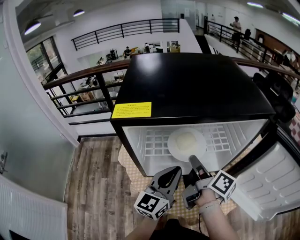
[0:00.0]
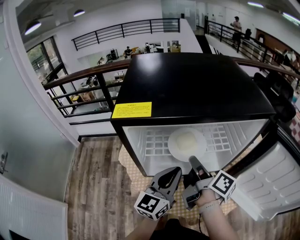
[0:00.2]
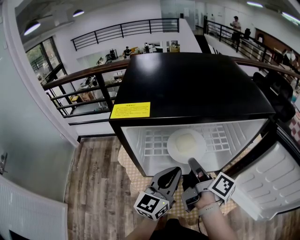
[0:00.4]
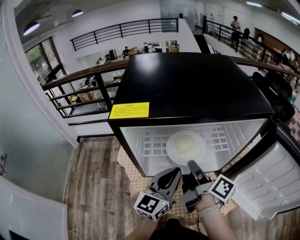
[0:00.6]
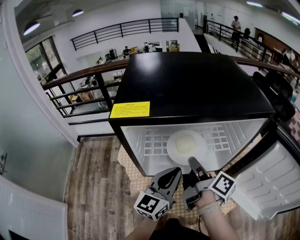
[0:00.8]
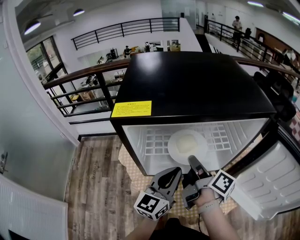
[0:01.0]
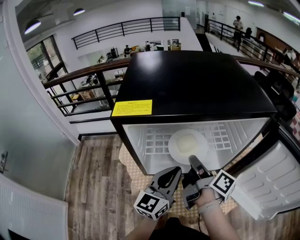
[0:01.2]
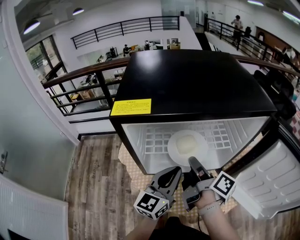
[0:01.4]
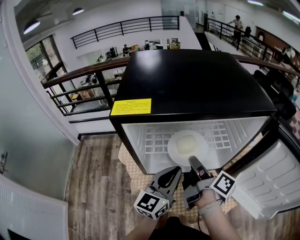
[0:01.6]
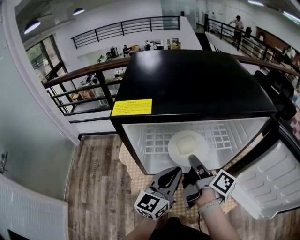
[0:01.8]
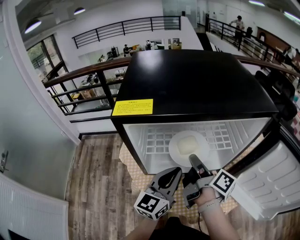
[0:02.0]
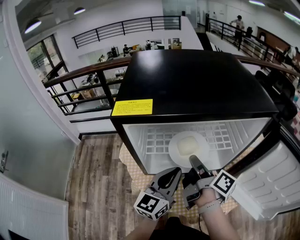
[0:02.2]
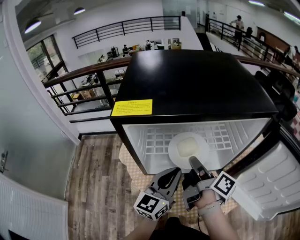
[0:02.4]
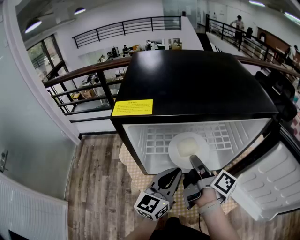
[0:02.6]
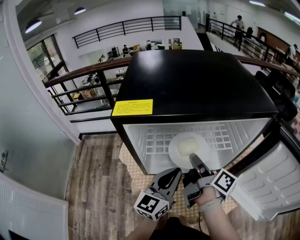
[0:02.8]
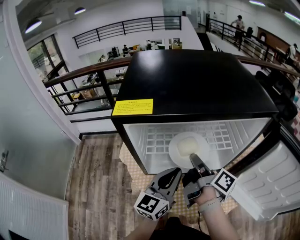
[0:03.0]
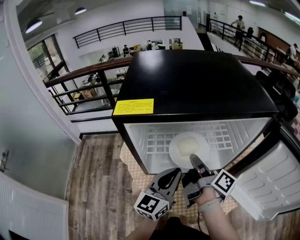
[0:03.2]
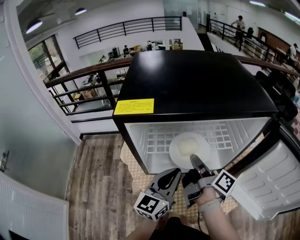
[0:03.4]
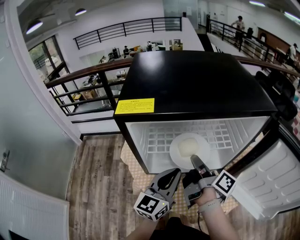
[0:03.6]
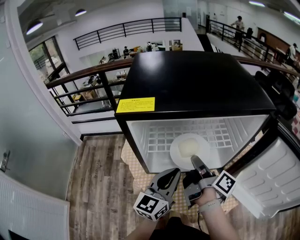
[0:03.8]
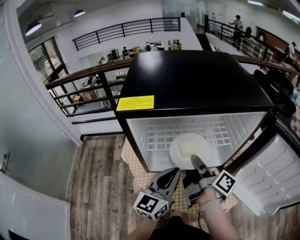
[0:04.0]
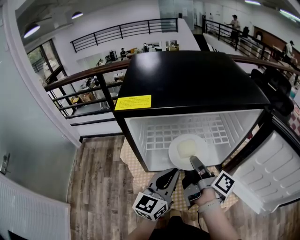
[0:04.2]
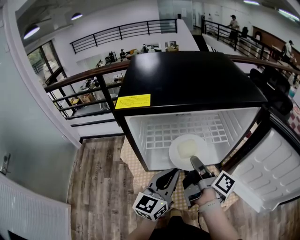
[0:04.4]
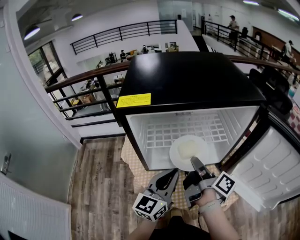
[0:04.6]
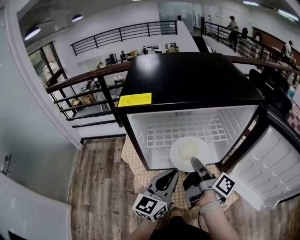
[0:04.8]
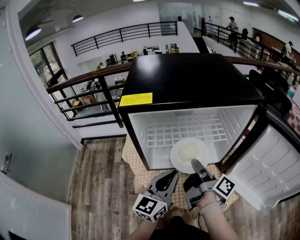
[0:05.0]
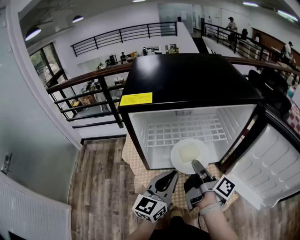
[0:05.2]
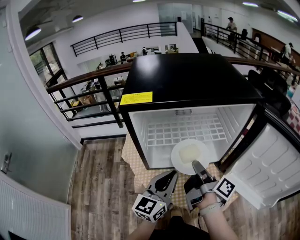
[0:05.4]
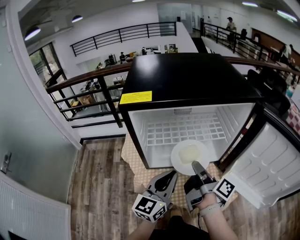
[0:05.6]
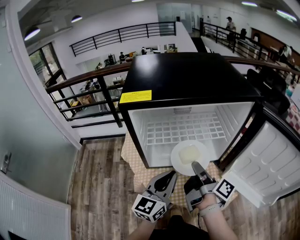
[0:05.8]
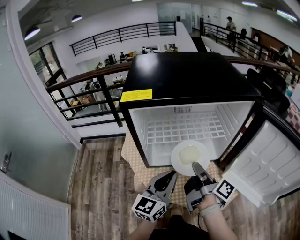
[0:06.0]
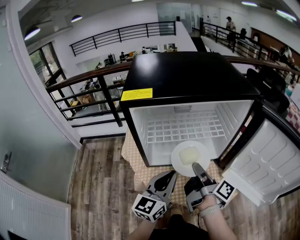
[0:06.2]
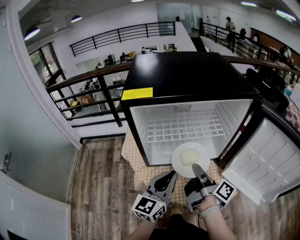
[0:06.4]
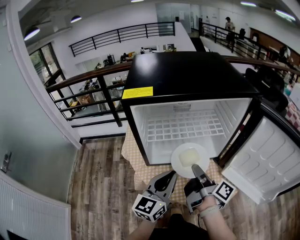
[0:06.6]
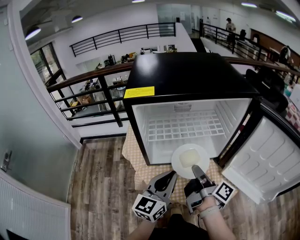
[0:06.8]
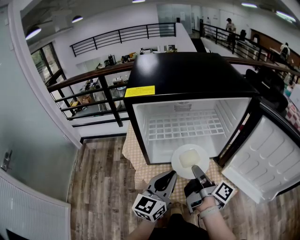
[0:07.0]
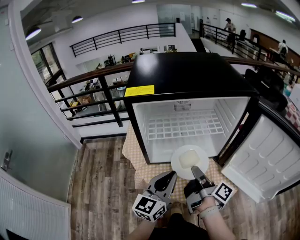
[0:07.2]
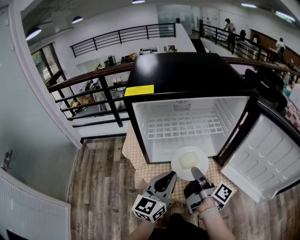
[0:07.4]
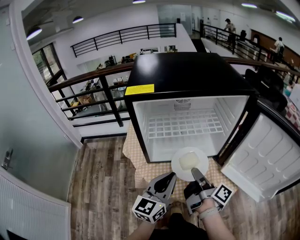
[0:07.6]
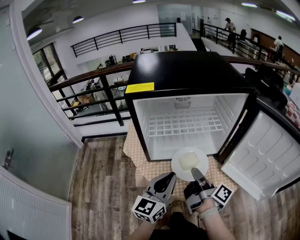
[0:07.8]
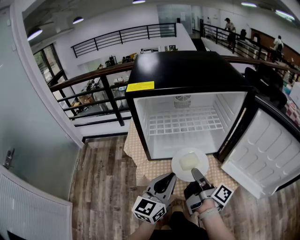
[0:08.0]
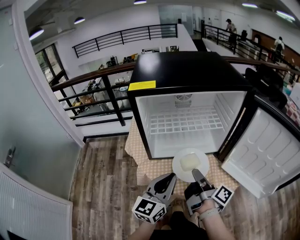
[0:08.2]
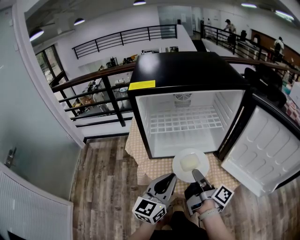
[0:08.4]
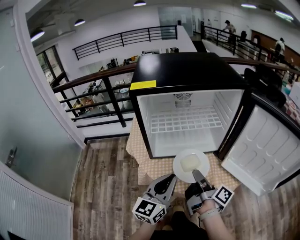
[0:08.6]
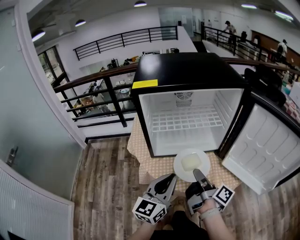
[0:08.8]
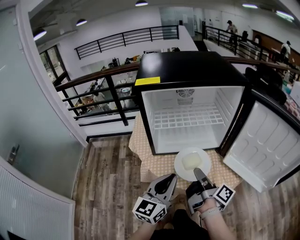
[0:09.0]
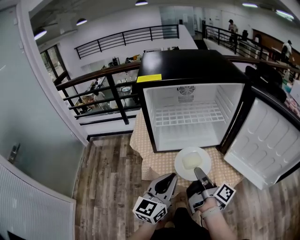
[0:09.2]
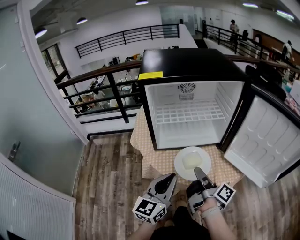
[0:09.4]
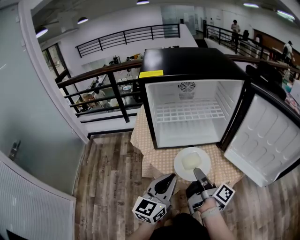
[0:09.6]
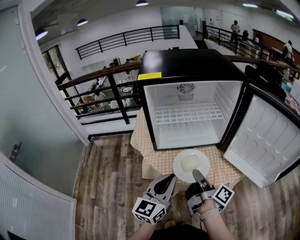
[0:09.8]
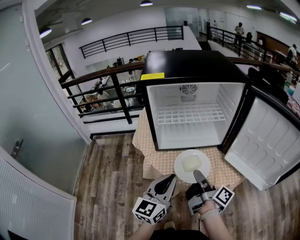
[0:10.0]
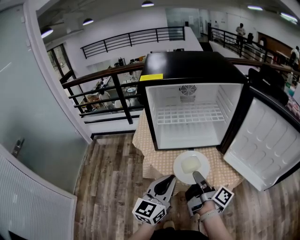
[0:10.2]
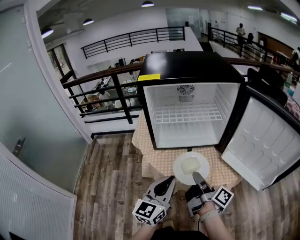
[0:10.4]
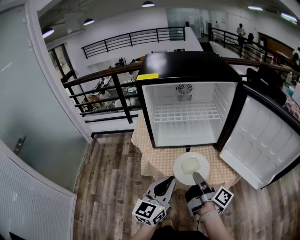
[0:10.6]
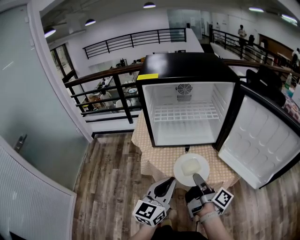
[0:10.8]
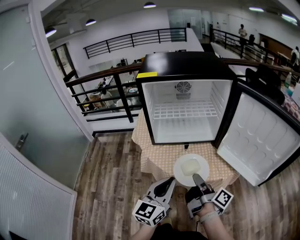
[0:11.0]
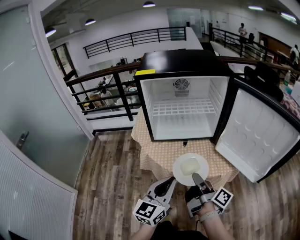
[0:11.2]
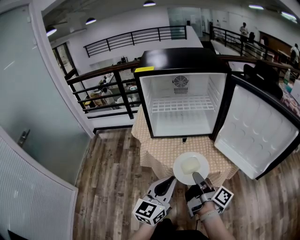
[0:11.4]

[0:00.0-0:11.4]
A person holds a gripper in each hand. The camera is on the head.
0:00.0 to 0:01.4: The grippers move only a little.
0:01.4 to 0:02.8: Both grippers stay put.
0:02.8 to 0:04.2: The grippers make only small movements.
0:04.2 to 0:05.6: The grippers make only small movements.
0:05.6 to 0:07.2: There are only small adjustments of the grippers.
0:07.2 to 0:08.6: The grippers both shift backward by approximately 5 cm.
0:08.6 to 0:10.0: The left gripper travels backward by roughly 5 cm.
0:10.0 to 0:11.4: The grippers both shift backward and to the right by roughly 10 cm.

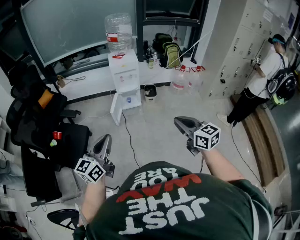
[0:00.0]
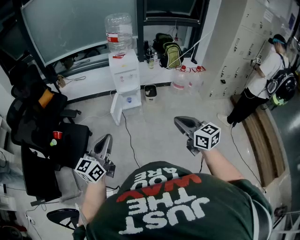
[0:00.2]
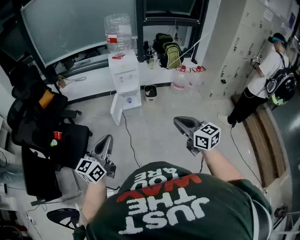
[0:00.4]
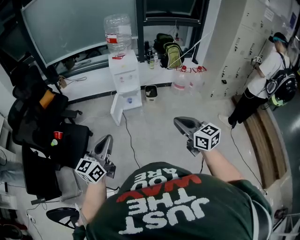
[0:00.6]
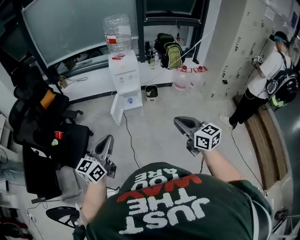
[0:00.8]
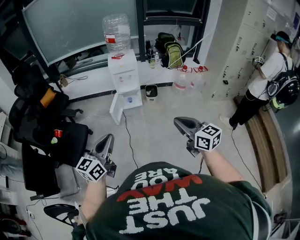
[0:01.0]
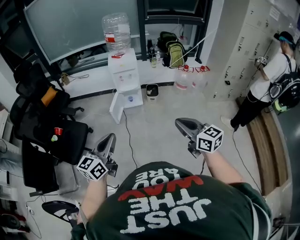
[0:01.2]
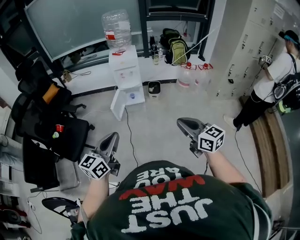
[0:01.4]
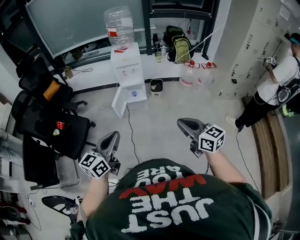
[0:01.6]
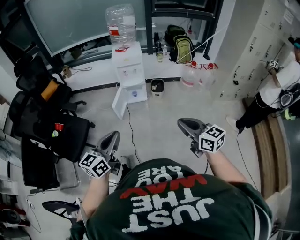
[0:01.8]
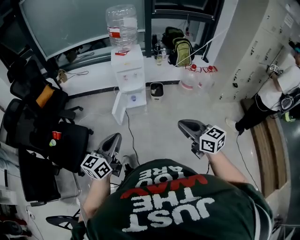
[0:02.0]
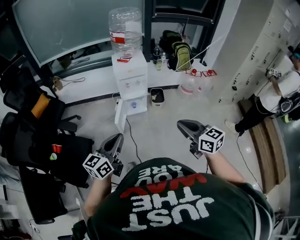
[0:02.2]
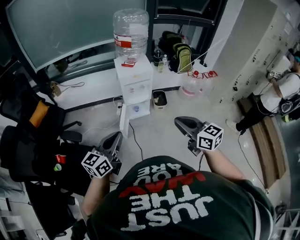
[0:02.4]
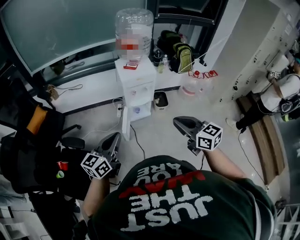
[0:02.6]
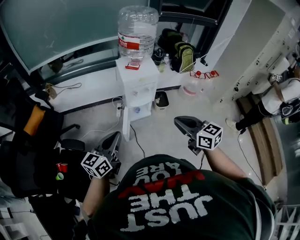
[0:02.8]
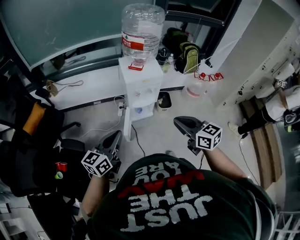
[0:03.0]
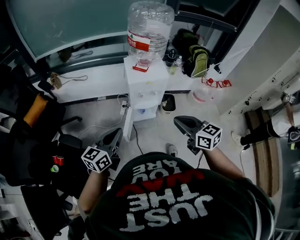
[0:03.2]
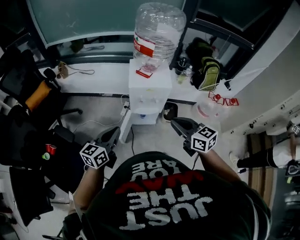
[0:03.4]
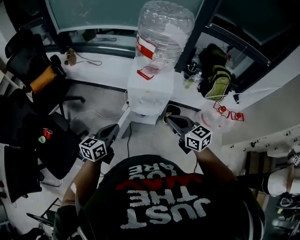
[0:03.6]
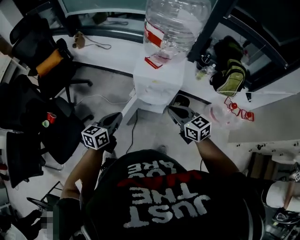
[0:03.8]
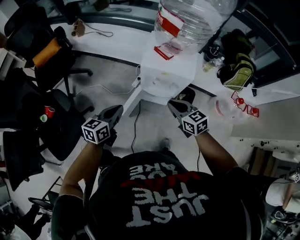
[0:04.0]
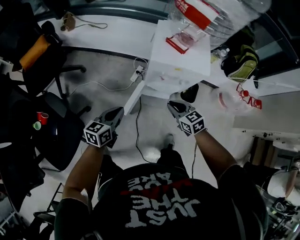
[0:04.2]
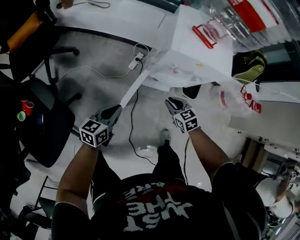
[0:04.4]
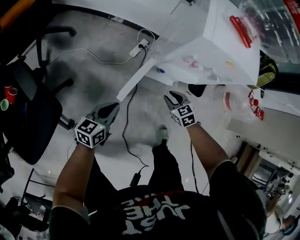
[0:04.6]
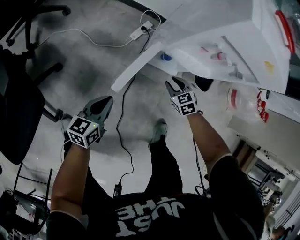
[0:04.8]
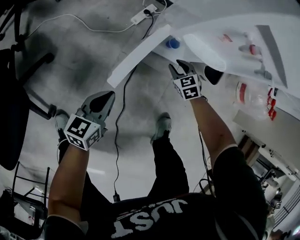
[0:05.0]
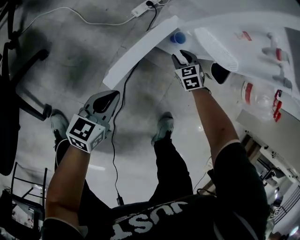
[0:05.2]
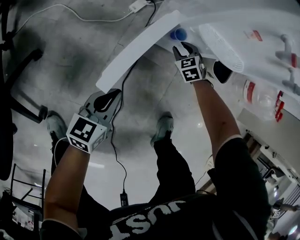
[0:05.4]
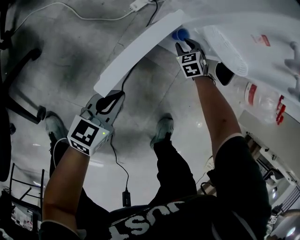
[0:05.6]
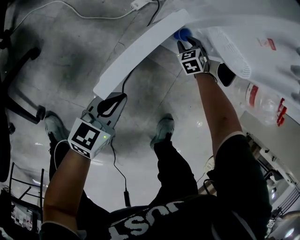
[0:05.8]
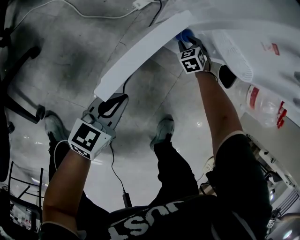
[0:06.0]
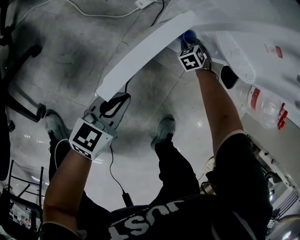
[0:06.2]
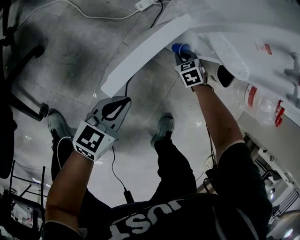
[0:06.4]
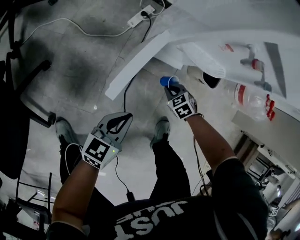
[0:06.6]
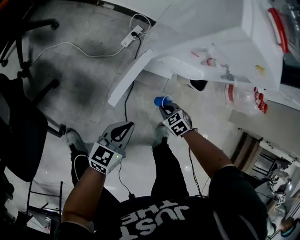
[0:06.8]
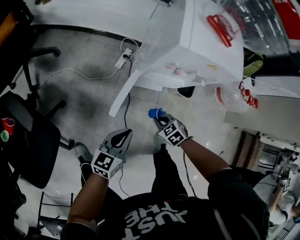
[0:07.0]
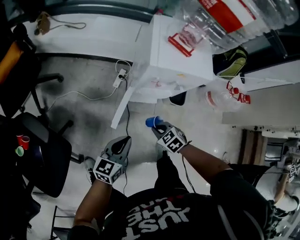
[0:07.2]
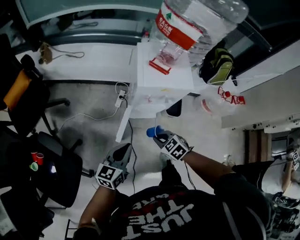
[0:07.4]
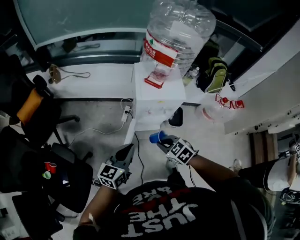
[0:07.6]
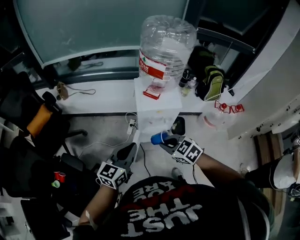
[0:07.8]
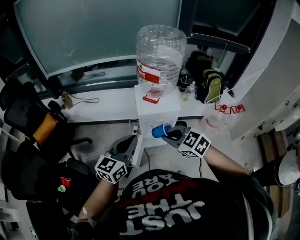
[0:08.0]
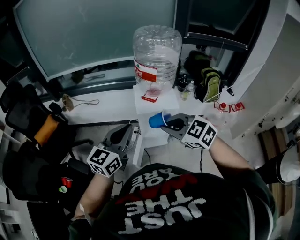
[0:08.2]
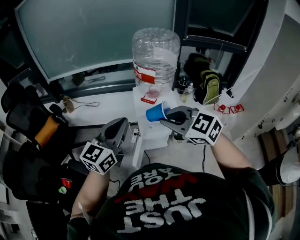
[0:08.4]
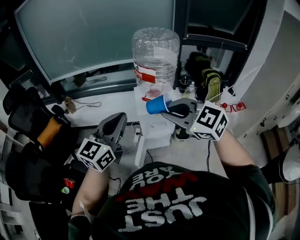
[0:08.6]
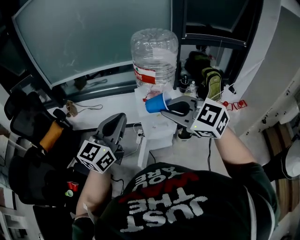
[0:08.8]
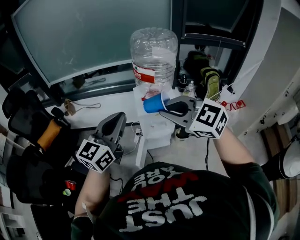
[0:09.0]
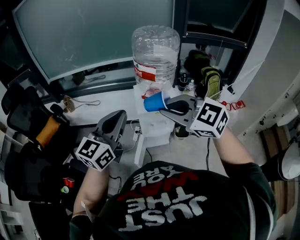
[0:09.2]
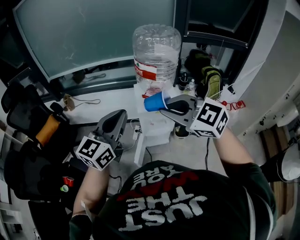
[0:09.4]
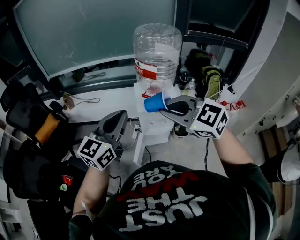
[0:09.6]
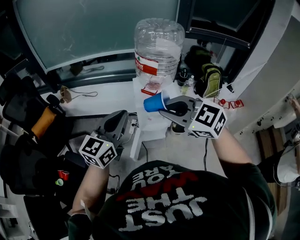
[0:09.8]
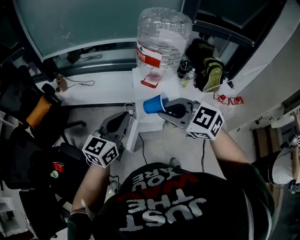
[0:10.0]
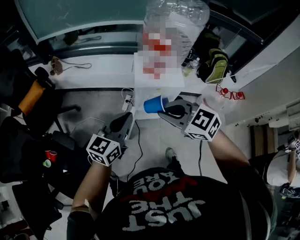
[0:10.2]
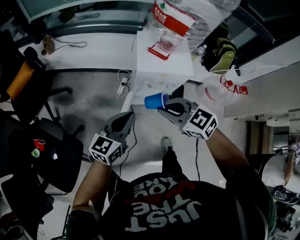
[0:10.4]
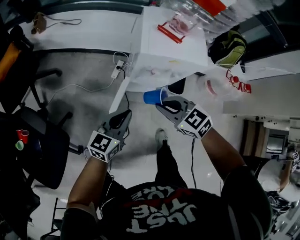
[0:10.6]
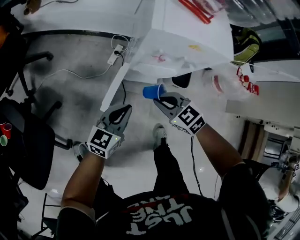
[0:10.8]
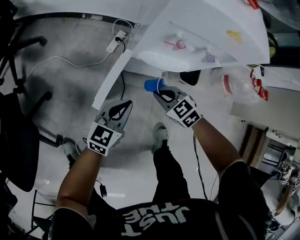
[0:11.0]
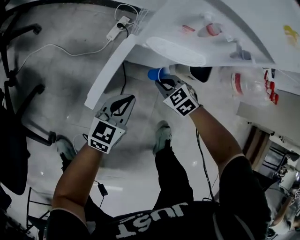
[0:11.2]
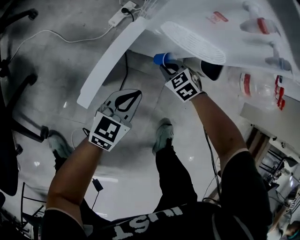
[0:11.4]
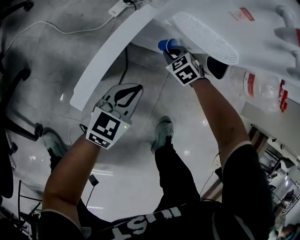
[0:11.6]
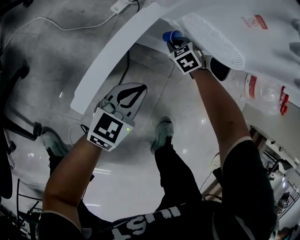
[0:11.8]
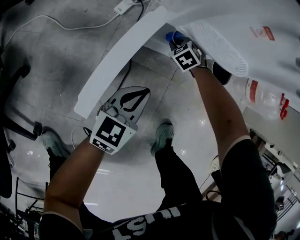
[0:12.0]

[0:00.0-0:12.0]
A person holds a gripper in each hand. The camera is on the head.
0:00.0 to 0:01.6: Both grippers travel together to the right, about 15 cm.
0:01.6 to 0:03.0: Both grippers are carried forward and to the left, approximately 50 cm.
0:03.0 to 0:04.4: The two grippers go approximately 40 cm downward. The right gripper rotates roughly 40 degrees. Meanwhile the left gripper changes its angle by about 30 degrees.
0:04.4 to 0:06.0: The right gripper goes roughly 50 cm downward and forward, swivels about 40 degrees, and opens its fingers. Meanwhile the left gripper goes approximately 35 cm downward.
0:06.0 to 0:07.6: Both grippers travel together upward, approximately 60 cm. The right gripper rotates roughly 30 degrees, and closes.
0:07.6 to 0:09.0: The two grippers go roughly 35 cm upward. The left gripper changes its angle by some 20 degrees. The right gripper tips its fingers upward by some 30 degrees.
0:09.0 to 0:10.4: The grippers both shift downward by roughly 30 cm. The right gripper rotates approximately 20 degrees.
0:10.4 to 0:12.0: Both grippers move downward, some 70 cm. The right gripper tilts its fingers some 40 degrees downward.
